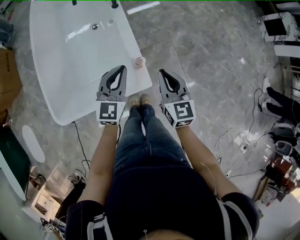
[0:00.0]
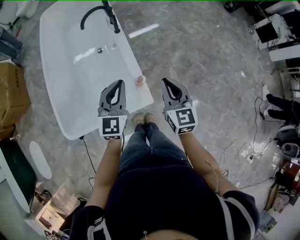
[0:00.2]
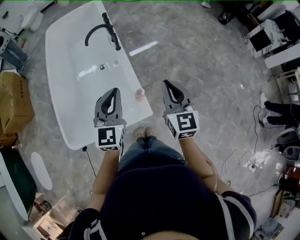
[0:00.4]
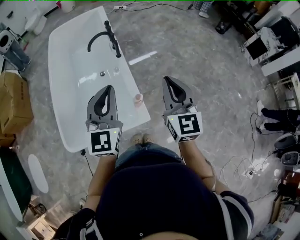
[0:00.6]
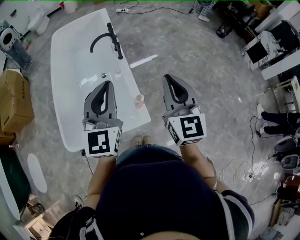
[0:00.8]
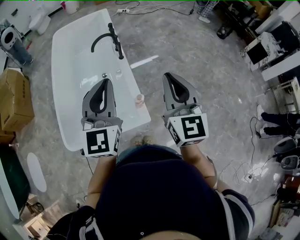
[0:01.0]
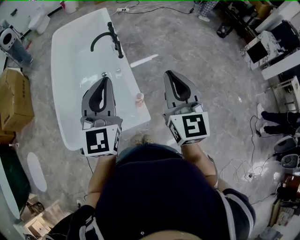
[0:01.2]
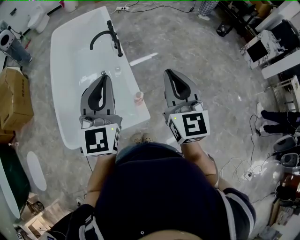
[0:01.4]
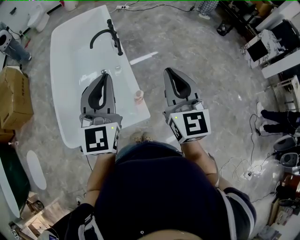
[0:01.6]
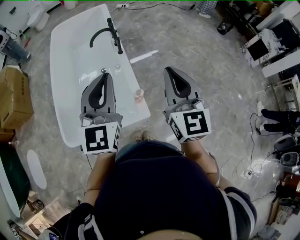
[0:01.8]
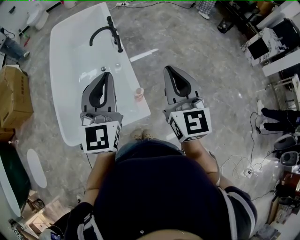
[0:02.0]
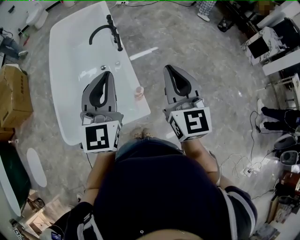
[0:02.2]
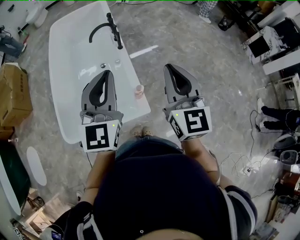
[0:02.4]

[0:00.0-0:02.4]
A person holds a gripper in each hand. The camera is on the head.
0:00.0 to 0:01.2: The two grippers go approximately 30 cm upward. The left gripper changes its angle by roughly 20 degrees, while the right gripper turns by some 20 degrees.
0:01.2 to 0:02.4: Both grippers stay put.

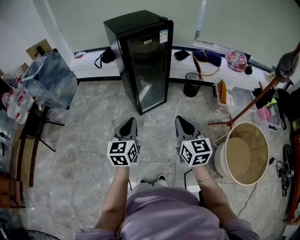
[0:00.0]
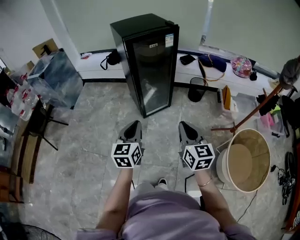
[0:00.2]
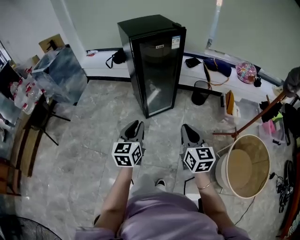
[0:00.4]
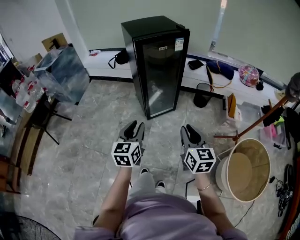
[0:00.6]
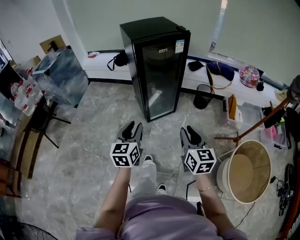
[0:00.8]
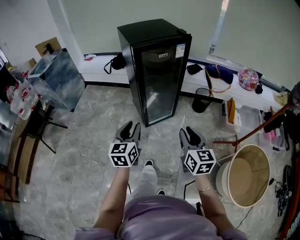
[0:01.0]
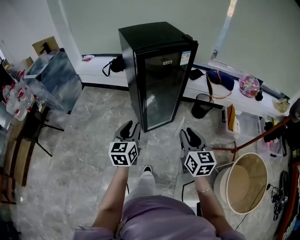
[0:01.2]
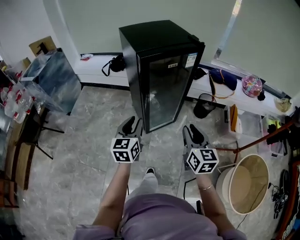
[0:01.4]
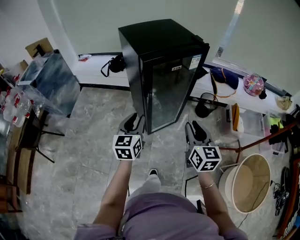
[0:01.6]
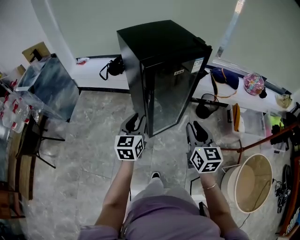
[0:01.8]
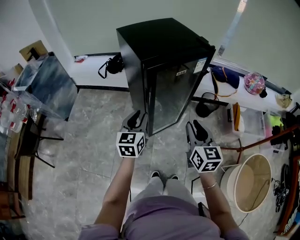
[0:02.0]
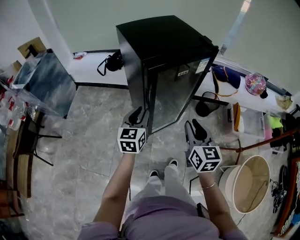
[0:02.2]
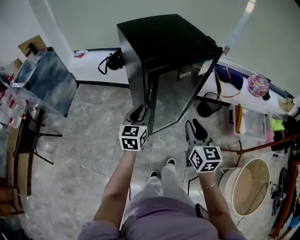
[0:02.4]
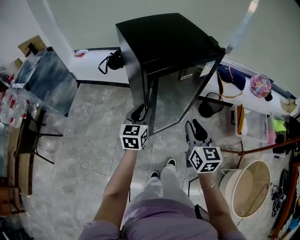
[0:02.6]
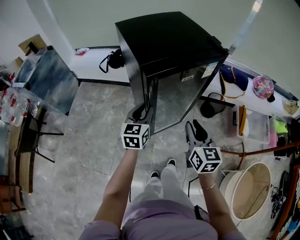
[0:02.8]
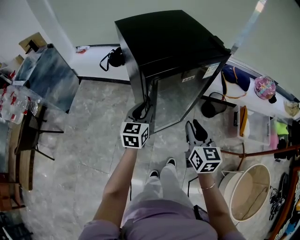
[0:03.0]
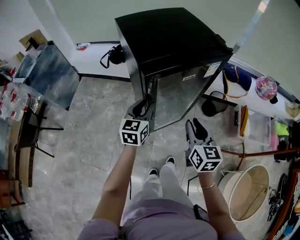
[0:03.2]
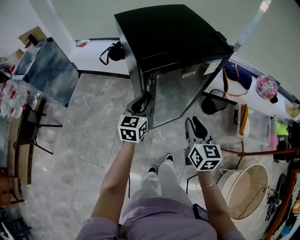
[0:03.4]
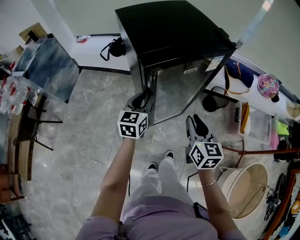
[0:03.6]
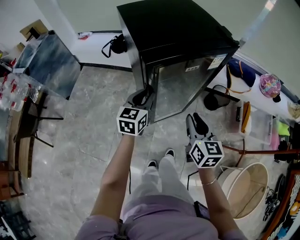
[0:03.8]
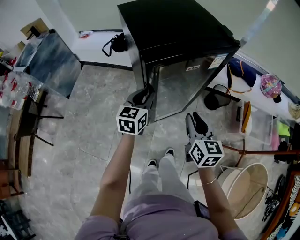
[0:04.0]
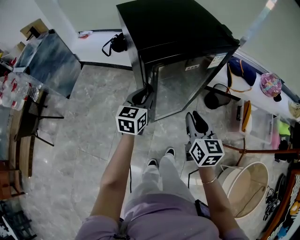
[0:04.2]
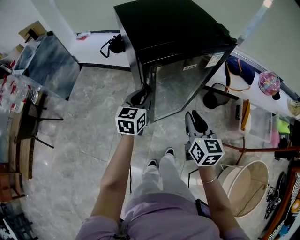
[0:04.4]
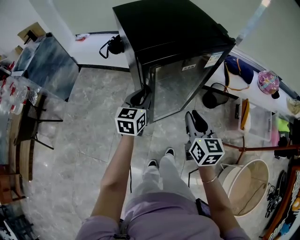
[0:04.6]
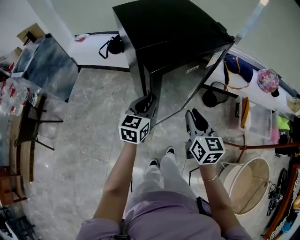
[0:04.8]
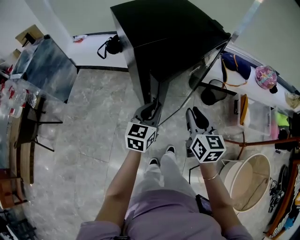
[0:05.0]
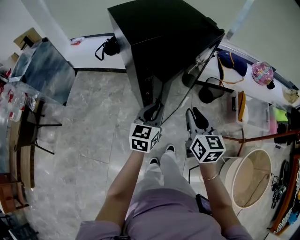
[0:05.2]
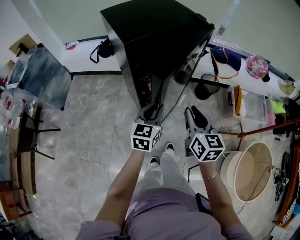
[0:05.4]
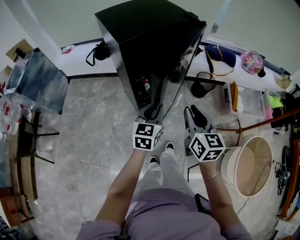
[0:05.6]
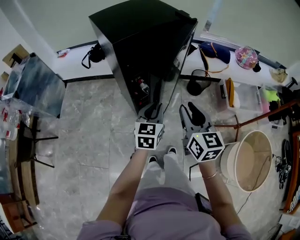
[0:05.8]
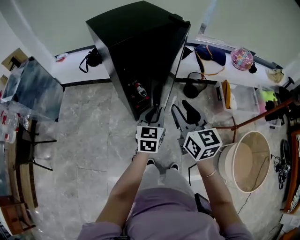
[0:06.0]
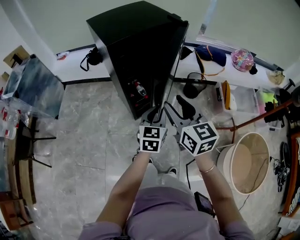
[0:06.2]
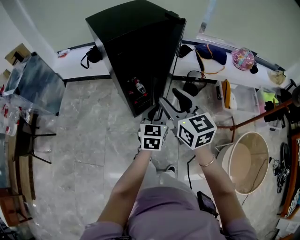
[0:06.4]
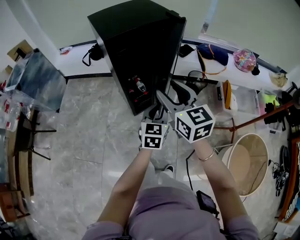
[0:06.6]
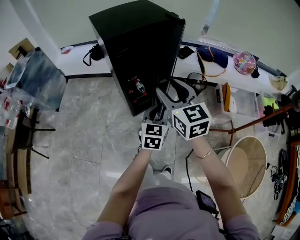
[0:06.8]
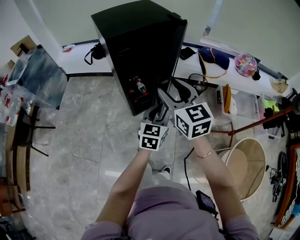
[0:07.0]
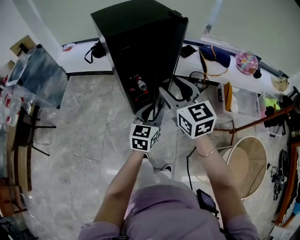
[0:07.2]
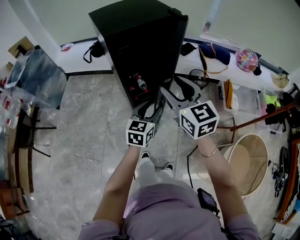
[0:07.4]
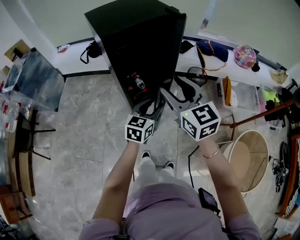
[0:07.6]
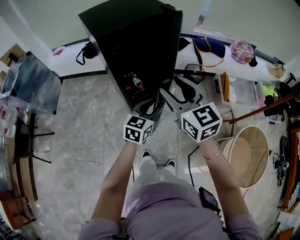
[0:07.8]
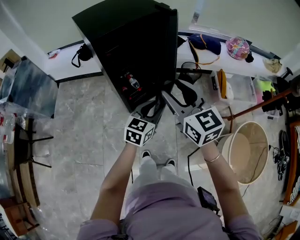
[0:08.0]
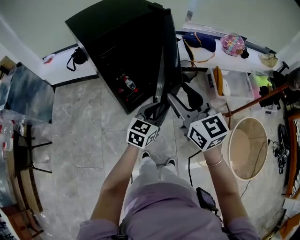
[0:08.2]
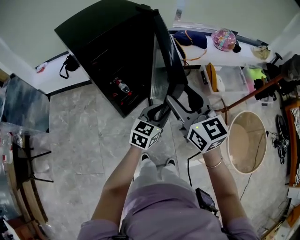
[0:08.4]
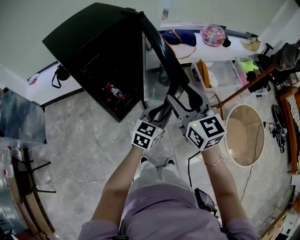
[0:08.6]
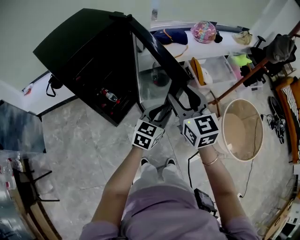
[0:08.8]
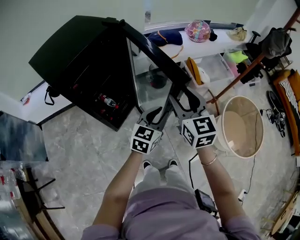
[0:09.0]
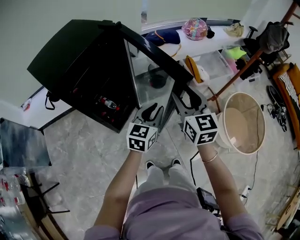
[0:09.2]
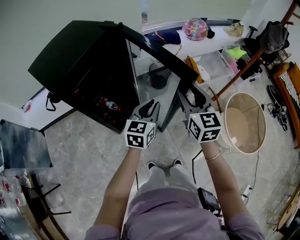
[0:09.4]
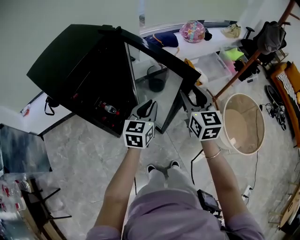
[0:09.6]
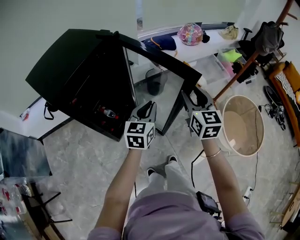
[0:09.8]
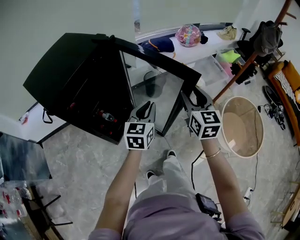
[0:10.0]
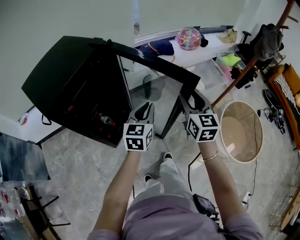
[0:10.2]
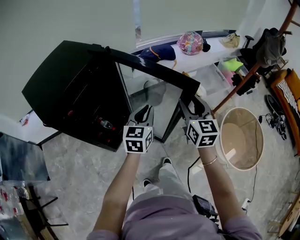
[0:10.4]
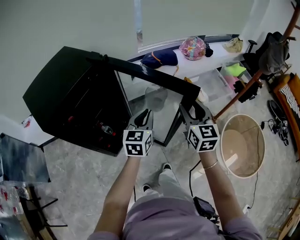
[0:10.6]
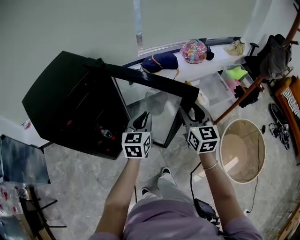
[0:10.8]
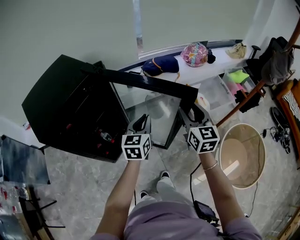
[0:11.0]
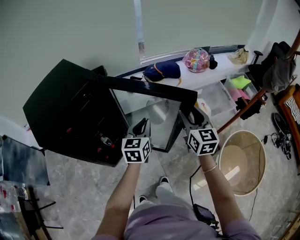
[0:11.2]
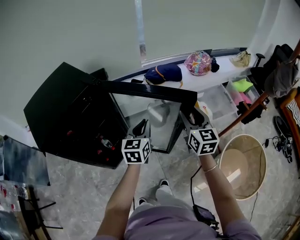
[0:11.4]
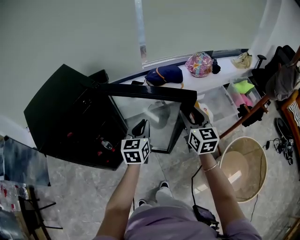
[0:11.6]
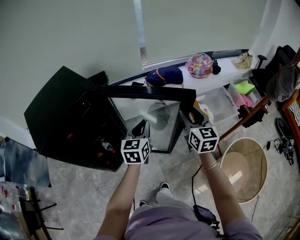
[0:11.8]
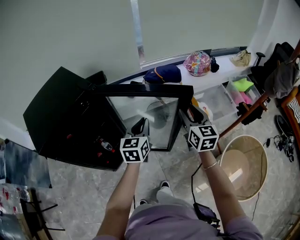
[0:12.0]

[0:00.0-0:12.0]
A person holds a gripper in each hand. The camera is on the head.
0:00.0 to 0:01.6: The grippers both shift forward by roughly 25 cm. The left gripper opens; the right gripper opens.
0:01.6 to 0:03.0: Both grippers move forward, some 15 cm.
0:03.0 to 0:04.4: The grippers move only a little.
0:04.4 to 0:06.0: The right gripper is displaced backward and upward by roughly 15 cm. The left gripper heads to the right and backward, covering some 20 cm.
0:06.0 to 0:07.6: The left gripper opens up.
0:07.6 to 0:09.0: The right gripper moves about 15 cm, and turns by some 40 degrees. Meanwhile the left gripper moves some 15 cm, and turns by some 30 degrees.
0:09.0 to 0:10.4: The left gripper moves forward, some 10 cm, while the right gripper travels forward and to the right by some 15 cm.
0:10.4 to 0:12.0: The left gripper is displaced forward by some 15 cm; the right gripper is displaced forward and to the right by some 15 cm.

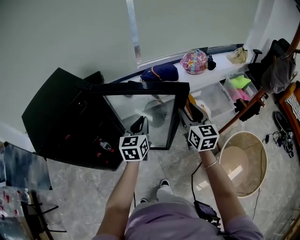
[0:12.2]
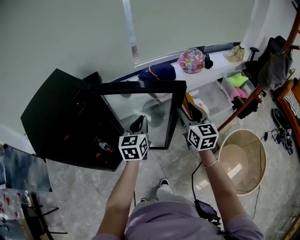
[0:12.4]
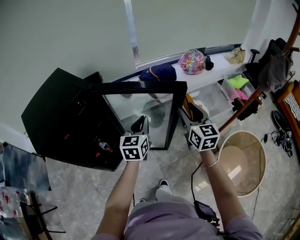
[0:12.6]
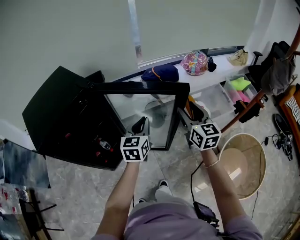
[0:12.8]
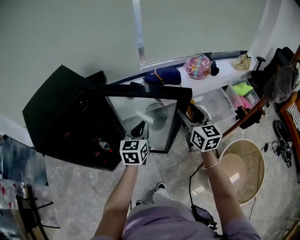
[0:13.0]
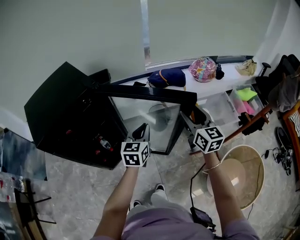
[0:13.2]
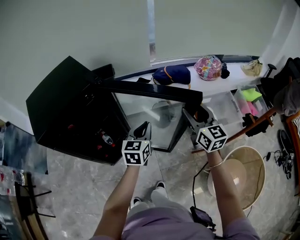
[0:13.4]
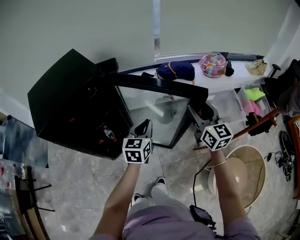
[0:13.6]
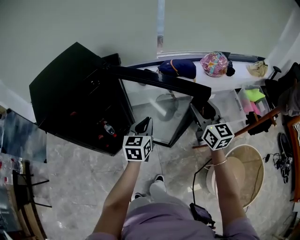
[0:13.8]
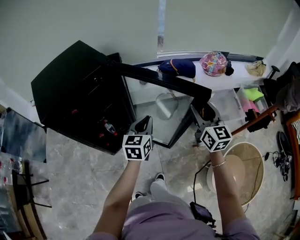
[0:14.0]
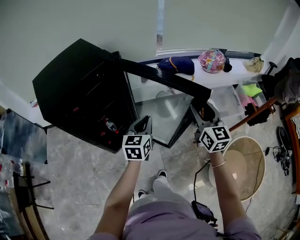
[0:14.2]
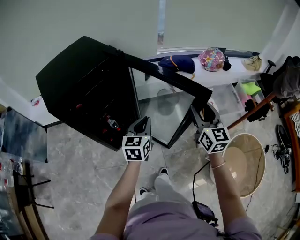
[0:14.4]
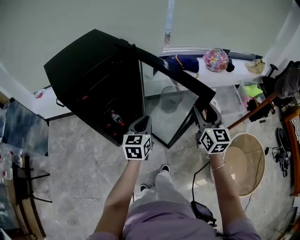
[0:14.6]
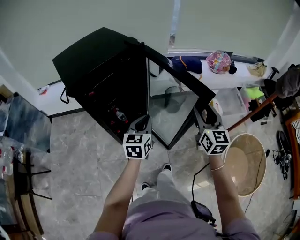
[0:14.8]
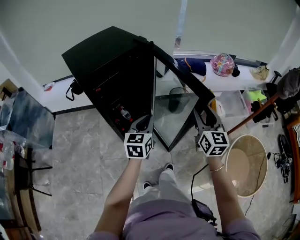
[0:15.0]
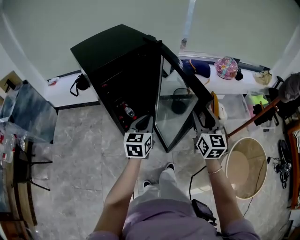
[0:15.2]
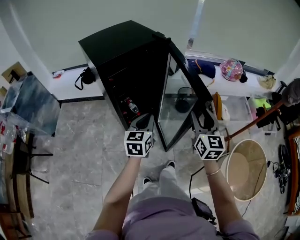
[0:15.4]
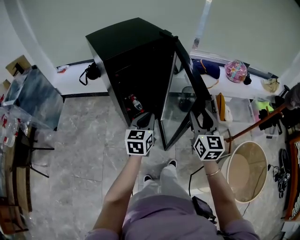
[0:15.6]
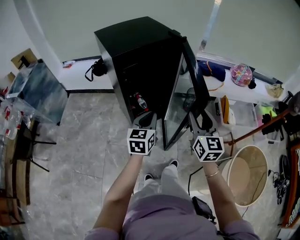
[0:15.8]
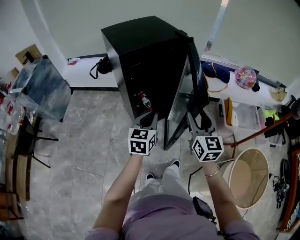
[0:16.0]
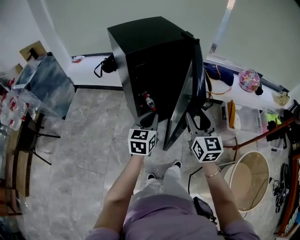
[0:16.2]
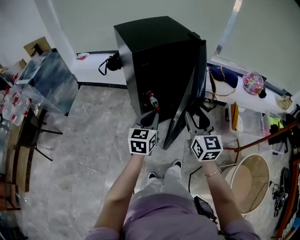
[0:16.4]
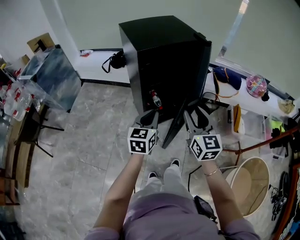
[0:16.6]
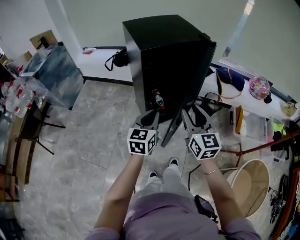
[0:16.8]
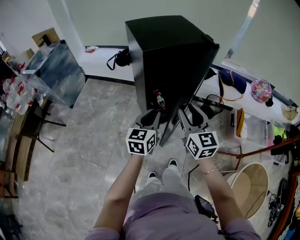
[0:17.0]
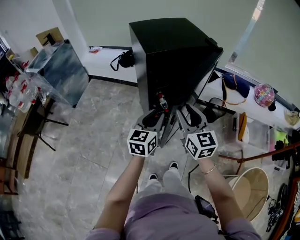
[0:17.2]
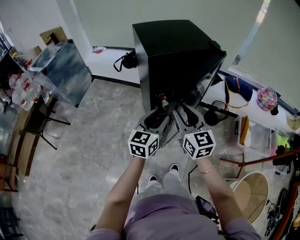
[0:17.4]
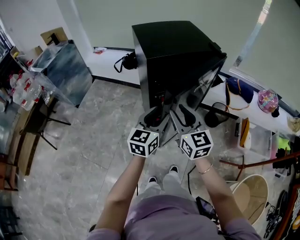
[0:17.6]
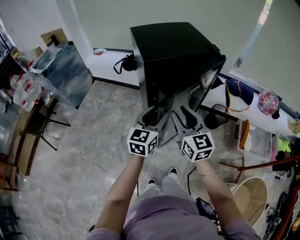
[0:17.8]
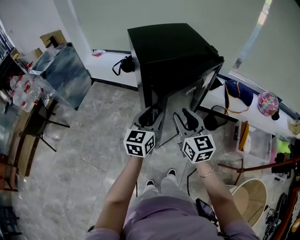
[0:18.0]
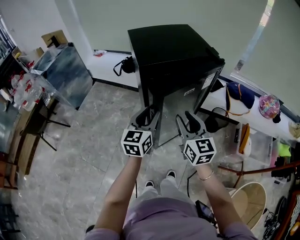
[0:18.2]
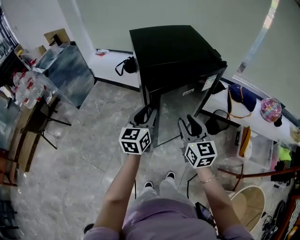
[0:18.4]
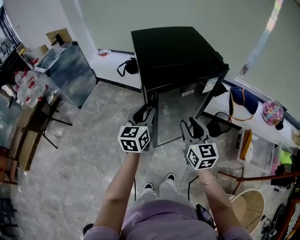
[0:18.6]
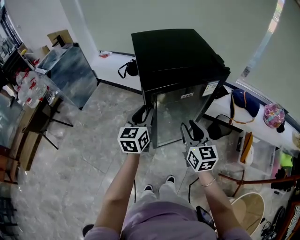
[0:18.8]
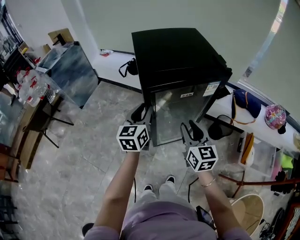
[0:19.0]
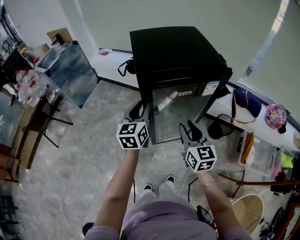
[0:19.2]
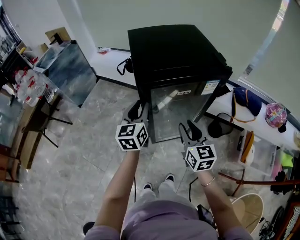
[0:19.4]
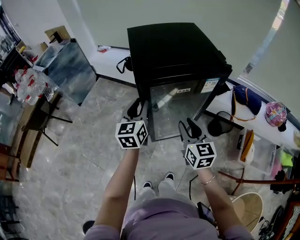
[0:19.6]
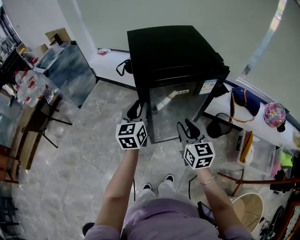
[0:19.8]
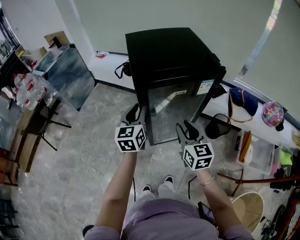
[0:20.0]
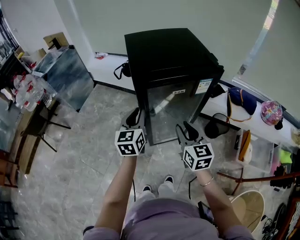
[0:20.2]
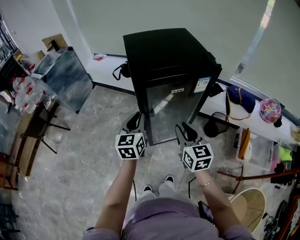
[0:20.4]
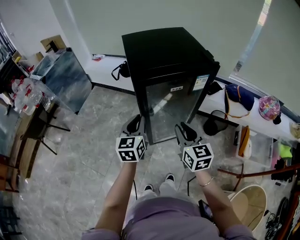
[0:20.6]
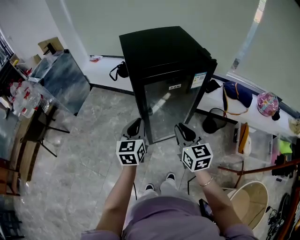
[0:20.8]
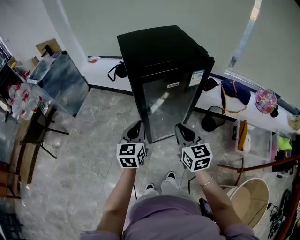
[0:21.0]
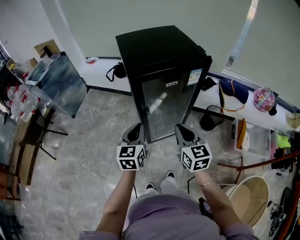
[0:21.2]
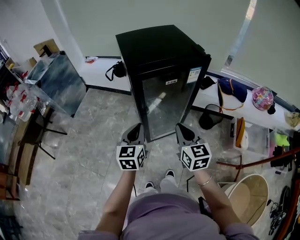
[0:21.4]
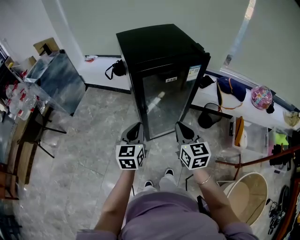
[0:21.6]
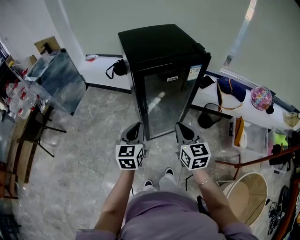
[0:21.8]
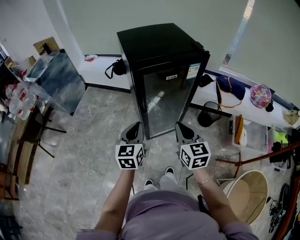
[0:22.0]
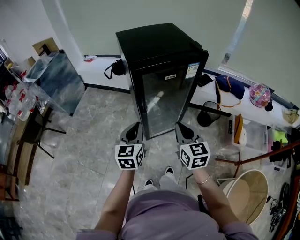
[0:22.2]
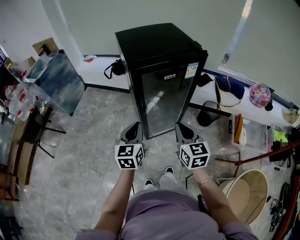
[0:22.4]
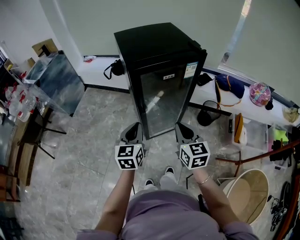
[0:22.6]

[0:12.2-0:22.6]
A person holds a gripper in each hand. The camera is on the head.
0:12.2 to 0:13.6: The grippers stay close to where they were, moving slightly.
0:13.6 to 0:15.2: Both grippers move backward and to the left, roughly 25 cm.
0:15.2 to 0:16.6: Both grippers travel together to the left, approximately 15 cm. The right gripper swivels some 20 degrees.
0:16.6 to 0:18.2: The grippers both shift forward by roughly 10 cm. The left gripper opens.
0:18.2 to 0:19.6: The left gripper travels forward by about 10 cm. Meanwhile the right gripper heads downward, covering approximately 5 cm.
0:19.6 to 0:21.2: The right gripper moves backward, some 10 cm, and closes up, while the left gripper goes some 15 cm backward, and closes up.
0:21.2 to 0:22.6: The grippers move only a little.
